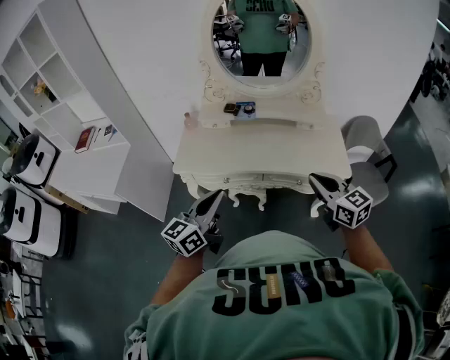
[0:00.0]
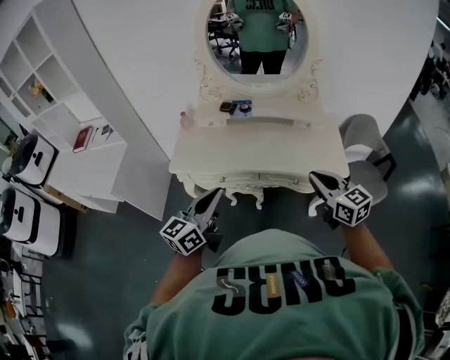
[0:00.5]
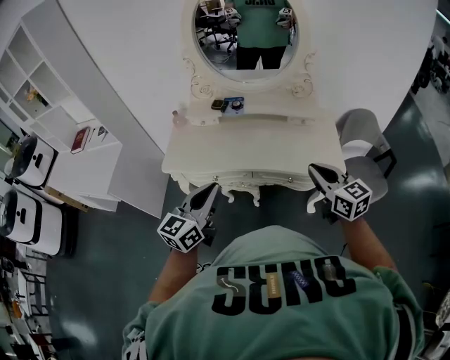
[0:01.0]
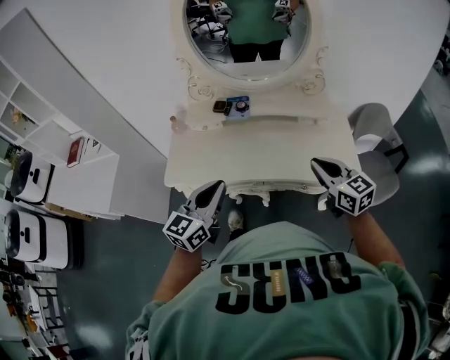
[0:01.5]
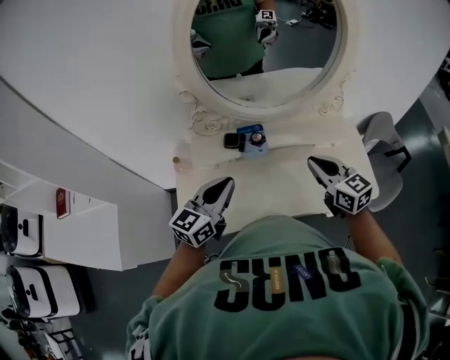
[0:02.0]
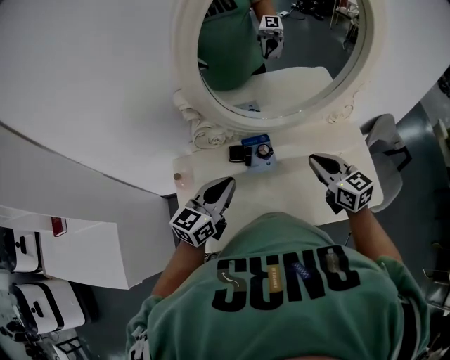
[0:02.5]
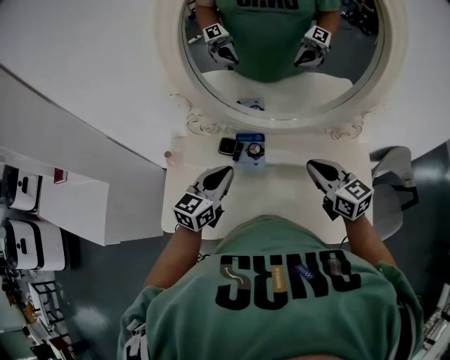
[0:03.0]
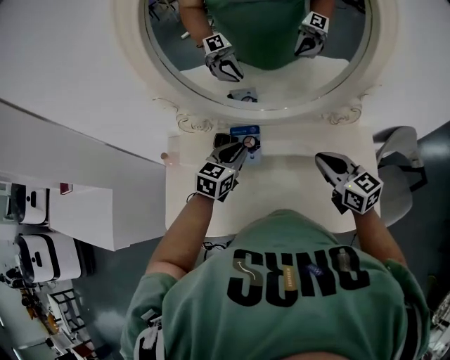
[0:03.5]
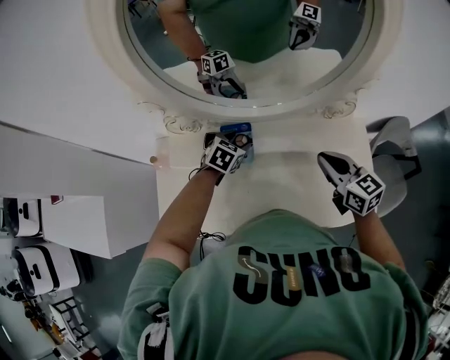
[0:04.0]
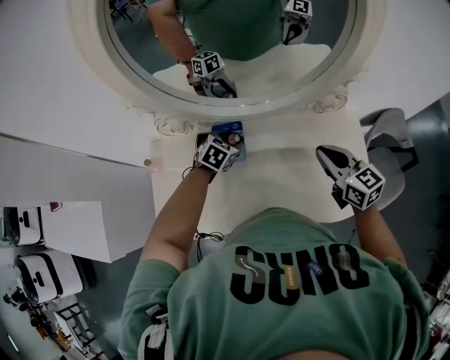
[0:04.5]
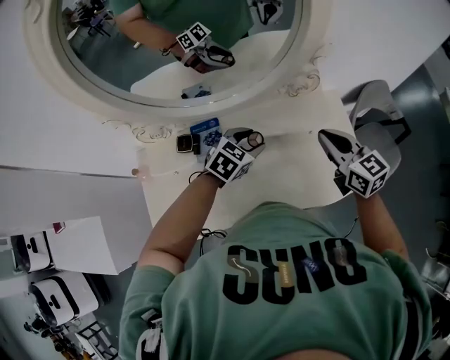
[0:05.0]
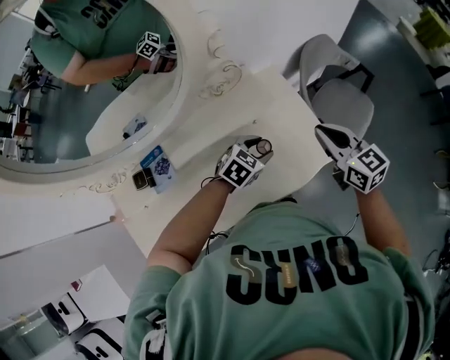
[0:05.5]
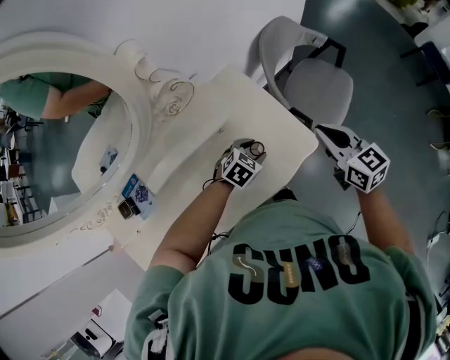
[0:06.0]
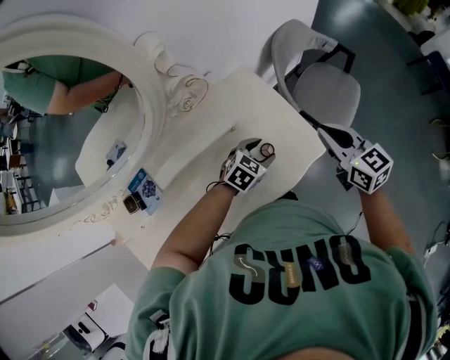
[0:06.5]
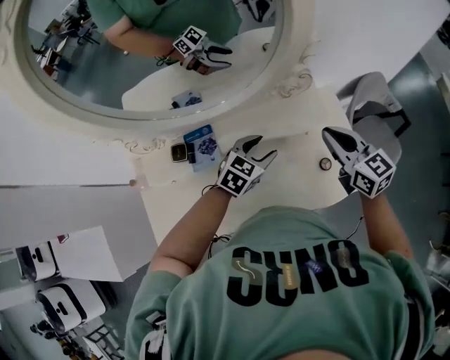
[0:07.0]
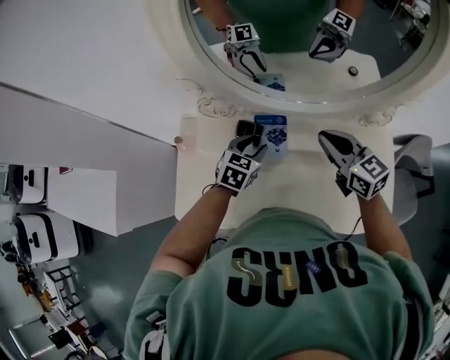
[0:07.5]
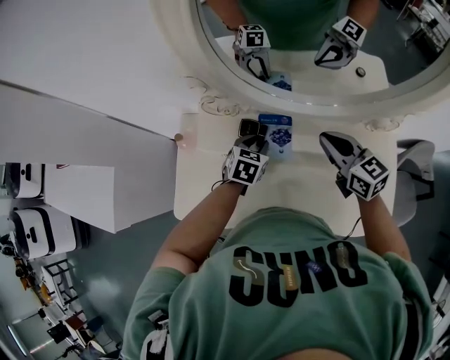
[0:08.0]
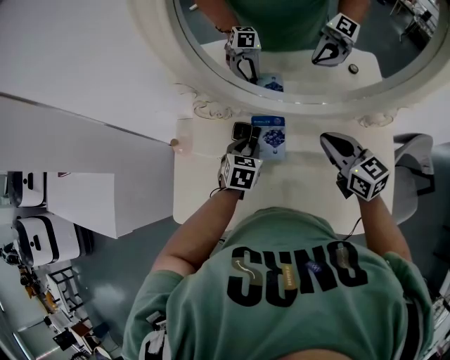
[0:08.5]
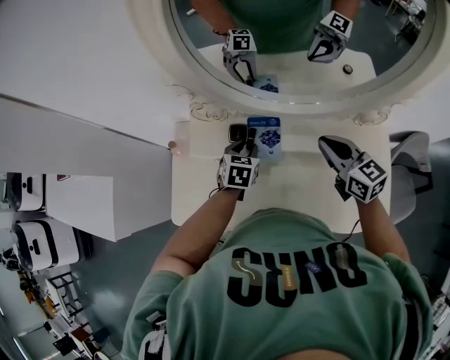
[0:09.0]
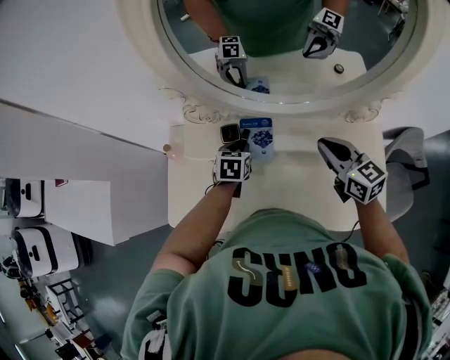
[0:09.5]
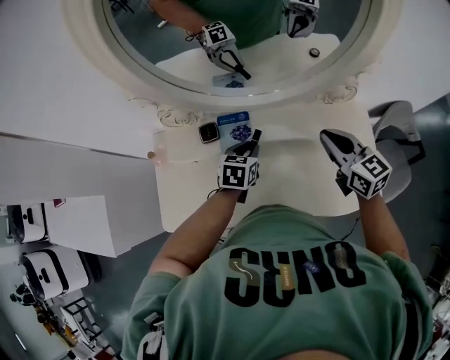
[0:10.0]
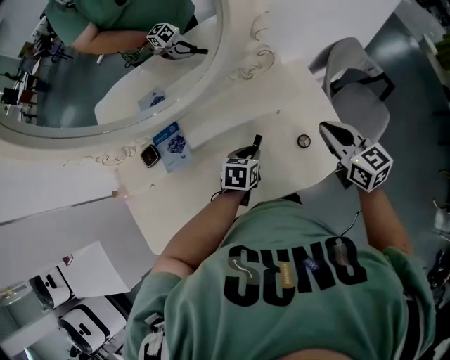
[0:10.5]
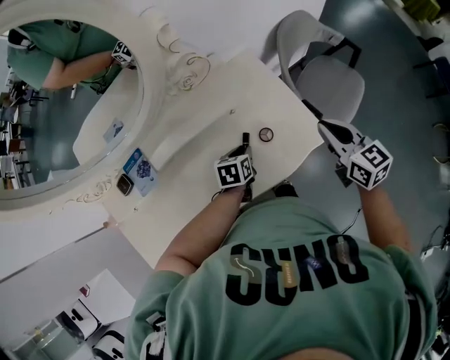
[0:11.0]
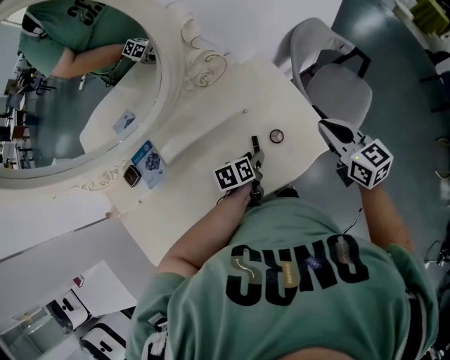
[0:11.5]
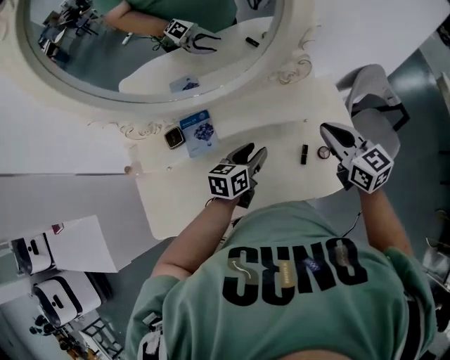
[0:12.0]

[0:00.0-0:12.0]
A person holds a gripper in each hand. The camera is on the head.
0:00.0 to 0:02.0: The two grippers go some 35 cm forward.
0:02.0 to 0:04.0: The left gripper travels forward, downward and to the right by roughly 35 cm, tips its fingers downward by roughly 50 degrees, and opens up; the right gripper shifts roughly 15 cm forward, to the right and downward.
0:04.0 to 0:06.0: The left gripper moves some 50 cm, and rotates roughly 50 degrees, while the right gripper ends up approximately 40 cm from where it was, and changes its angle by about 40 degrees.
0:06.0 to 0:08.0: The pair of grippers is taken about 50 cm. The left gripper changes its angle by about 70 degrees; the right gripper changes its angle by approximately 50 degrees.
0:08.0 to 0:10.0: Both grippers travel together to the right and backward, roughly 15 cm.
0:10.0 to 0:12.0: The left gripper moves roughly 10 cm downward and comes back, and swivels roughly 20 degrees.

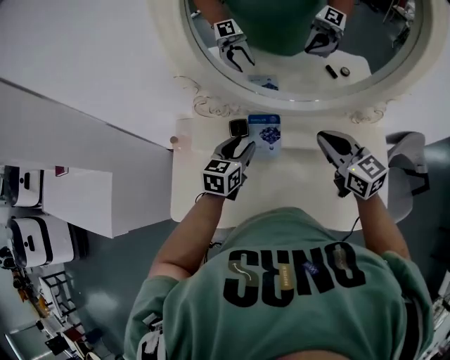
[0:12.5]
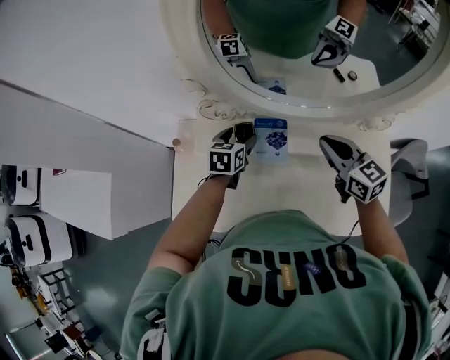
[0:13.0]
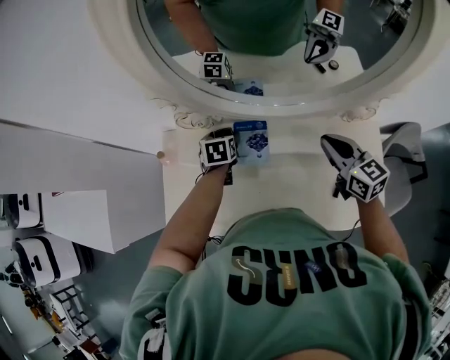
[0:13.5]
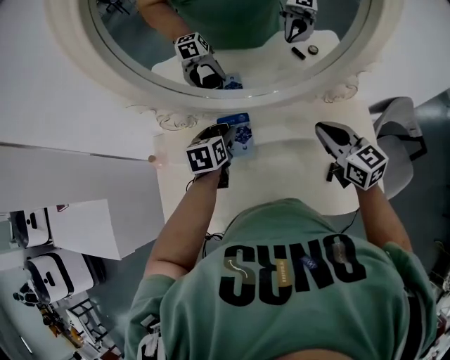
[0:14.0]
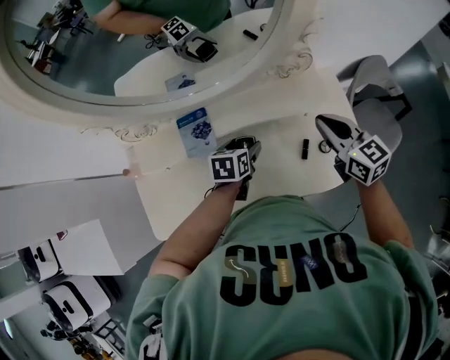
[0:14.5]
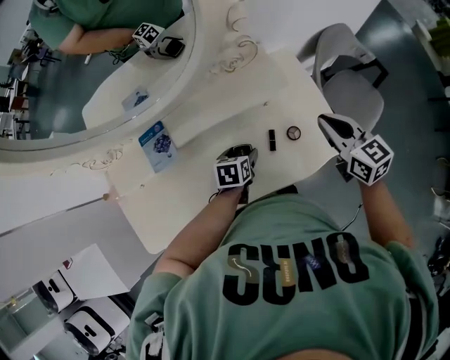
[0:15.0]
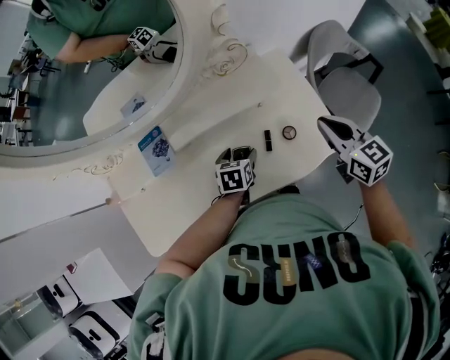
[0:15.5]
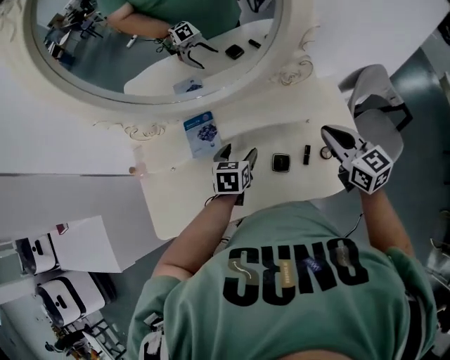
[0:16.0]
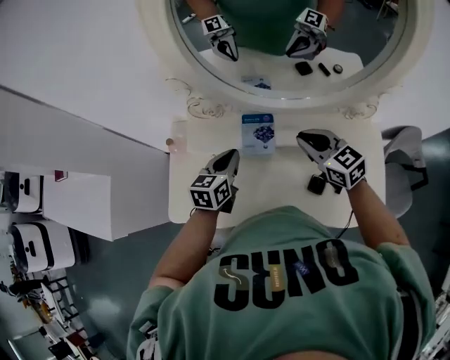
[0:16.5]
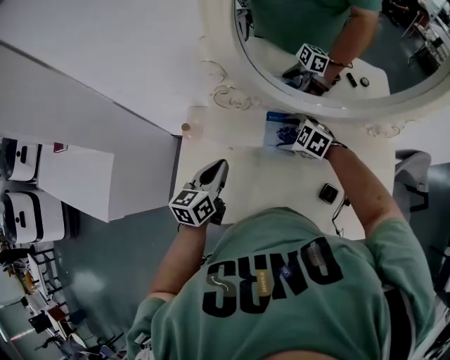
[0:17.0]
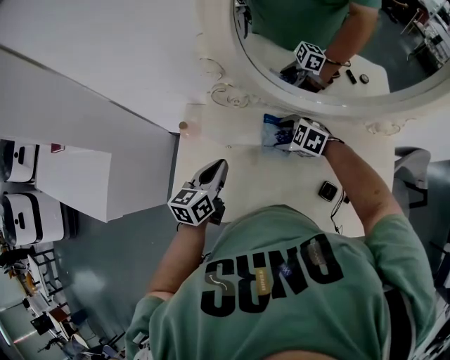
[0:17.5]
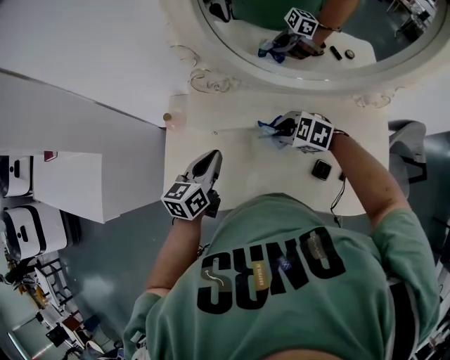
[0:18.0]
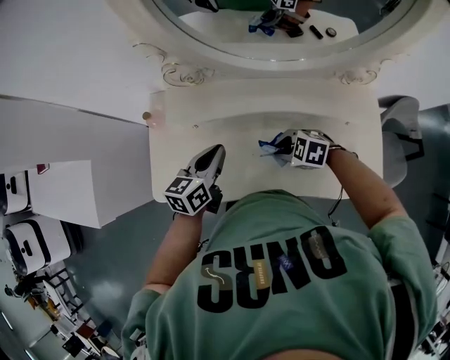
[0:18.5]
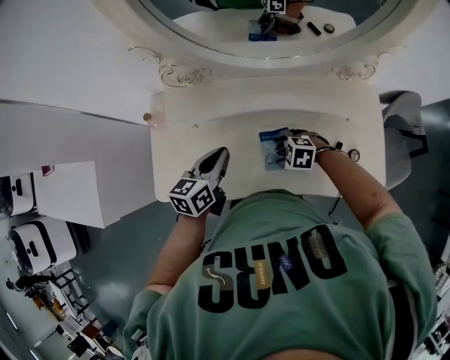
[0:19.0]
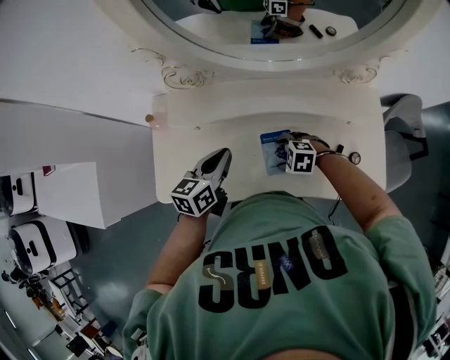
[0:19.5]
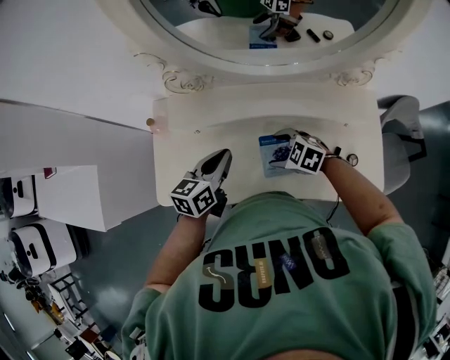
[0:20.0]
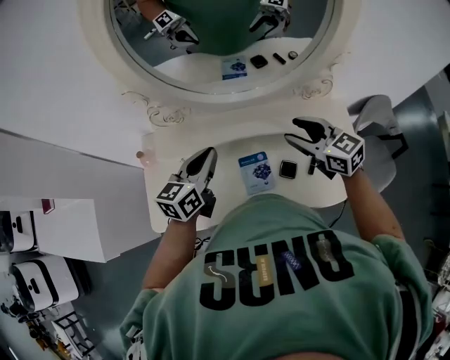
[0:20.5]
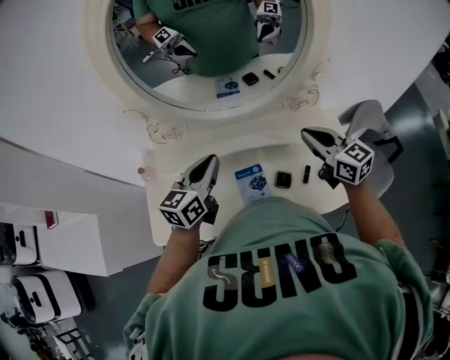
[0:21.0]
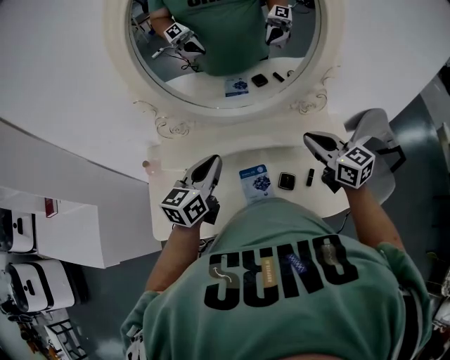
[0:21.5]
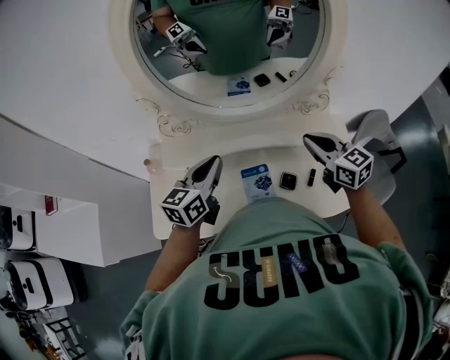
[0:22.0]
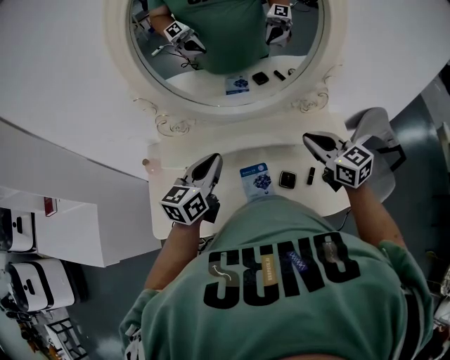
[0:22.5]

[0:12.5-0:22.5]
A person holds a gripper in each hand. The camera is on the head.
0:12.5 to 0:14.5: The left gripper goes up and down, approximately 10 cm each way, reversing 2 times, swivels about 30 degrees, and opens up. The right gripper ends up approximately 20 cm from where it was, and changes its angle by about 20 degrees.
0:14.5 to 0:16.5: The left gripper shifts by some 25 cm, turns by some 30 degrees, and closes its fingers; the right gripper shifts by about 25 cm, and changes its angle by roughly 30 degrees.
0:16.5 to 0:18.5: The right gripper moves downward, approximately 20 cm, tilts its fingers some 30 degrees downward, and opens and closes again.
0:18.5 to 0:20.5: The right gripper shifts some 20 cm upward, tips its fingers upward by approximately 40 degrees, and opens. Meanwhile the left gripper shifts roughly 10 cm upward.
0:20.5 to 0:22.5: The right gripper changes place by some 5 cm, and closes its fingers.

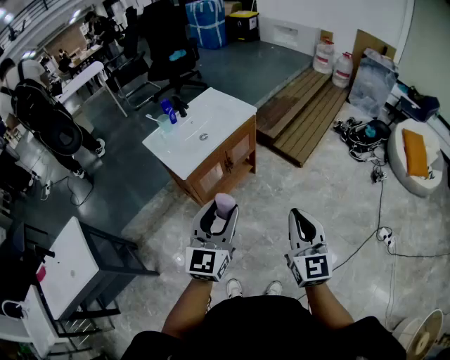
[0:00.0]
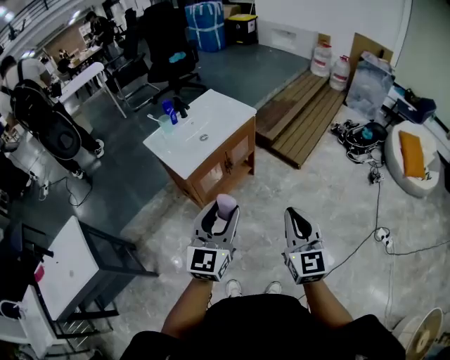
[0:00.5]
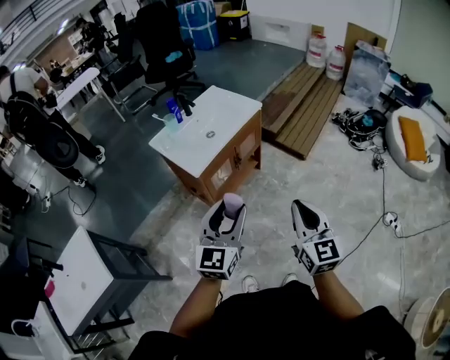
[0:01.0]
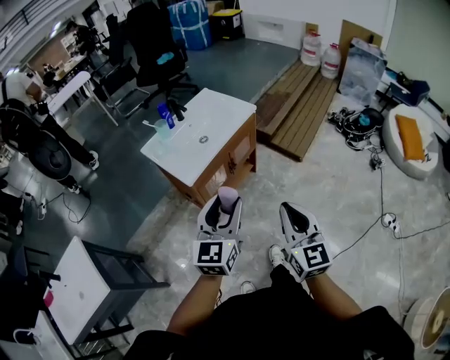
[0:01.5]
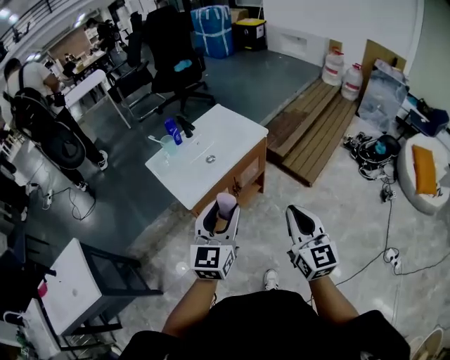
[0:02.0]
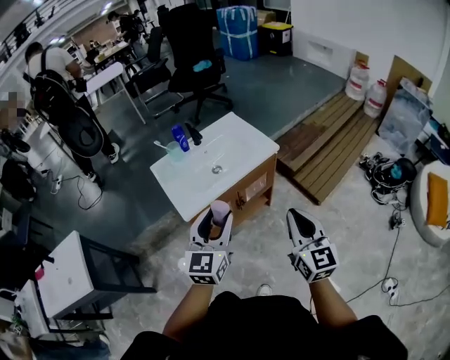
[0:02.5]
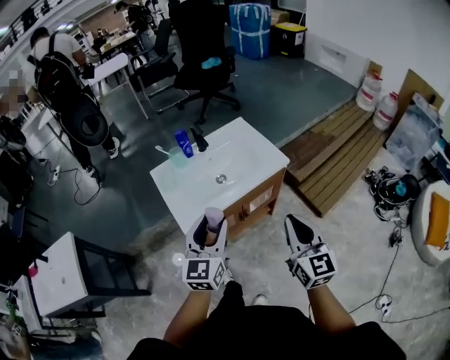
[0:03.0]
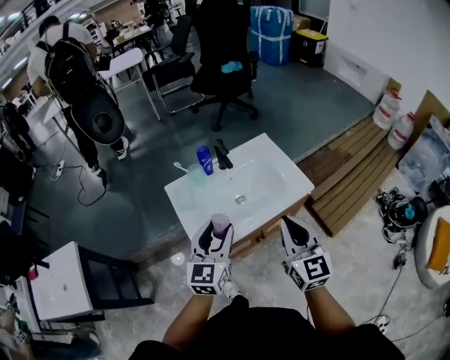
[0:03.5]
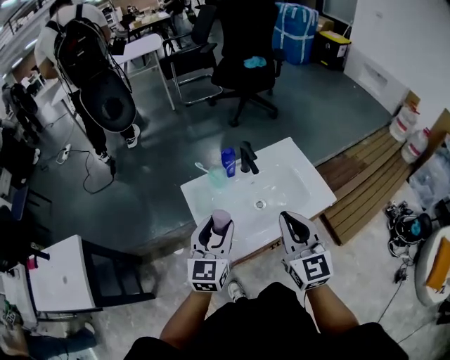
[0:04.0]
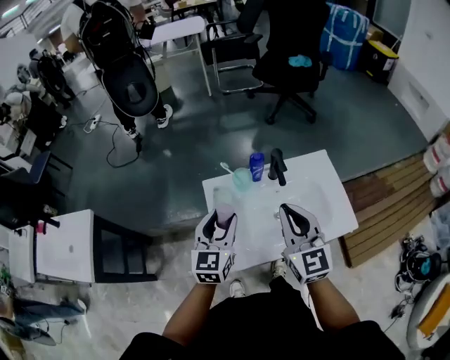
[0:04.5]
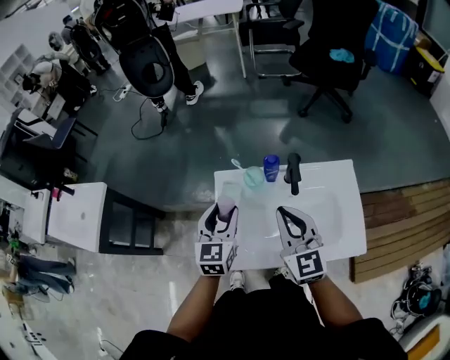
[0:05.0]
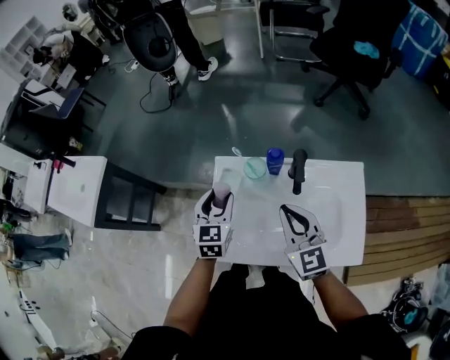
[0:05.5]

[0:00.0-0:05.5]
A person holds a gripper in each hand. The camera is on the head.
0:00.0 to 0:02.0: The grippers both shift forward by approximately 15 cm.
0:02.0 to 0:03.5: The right gripper shifts some 30 cm forward. The left gripper shifts roughly 25 cm forward and to the left.
0:03.5 to 0:05.5: The right gripper ends up about 30 cm from where it was, and changes its angle by roughly 40 degrees. The left gripper ends up about 25 cm from where it was, and changes its angle by some 40 degrees.
